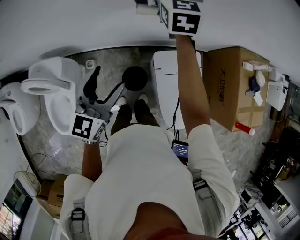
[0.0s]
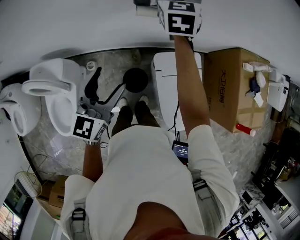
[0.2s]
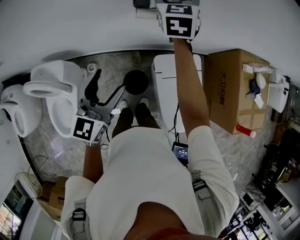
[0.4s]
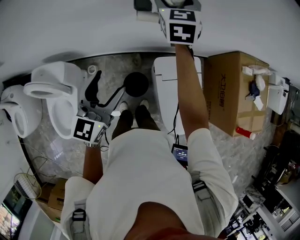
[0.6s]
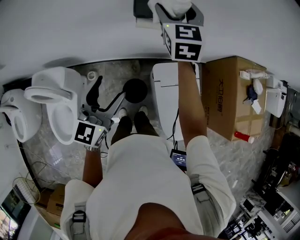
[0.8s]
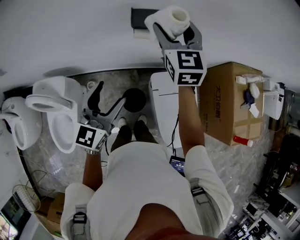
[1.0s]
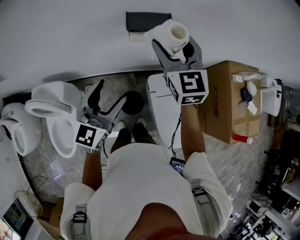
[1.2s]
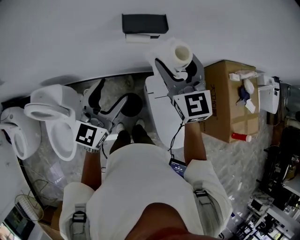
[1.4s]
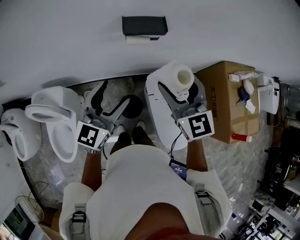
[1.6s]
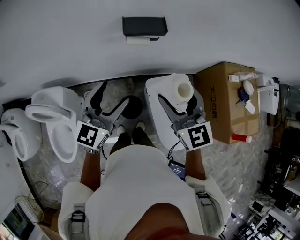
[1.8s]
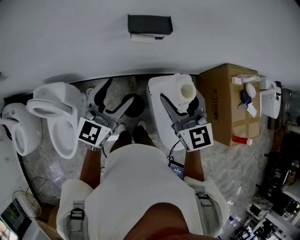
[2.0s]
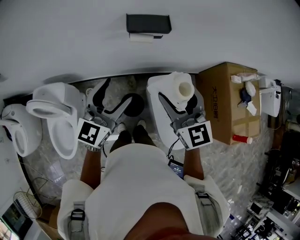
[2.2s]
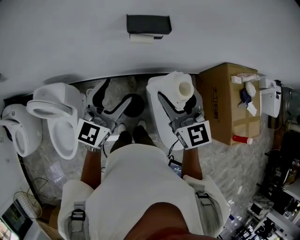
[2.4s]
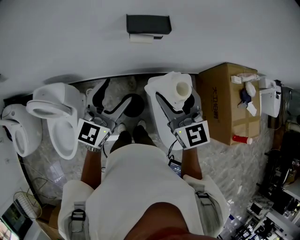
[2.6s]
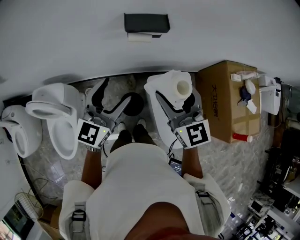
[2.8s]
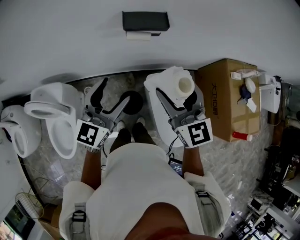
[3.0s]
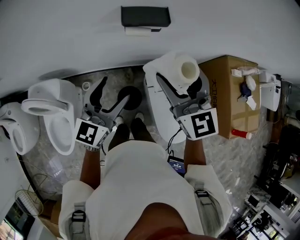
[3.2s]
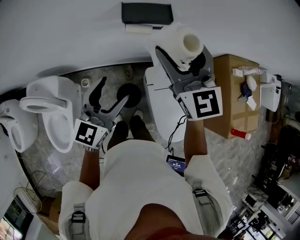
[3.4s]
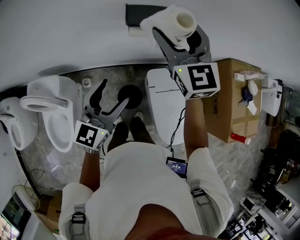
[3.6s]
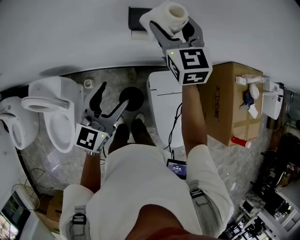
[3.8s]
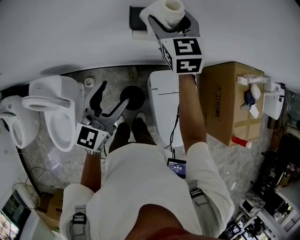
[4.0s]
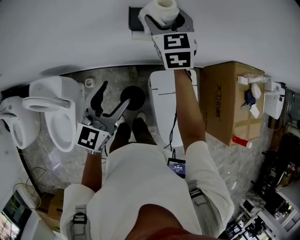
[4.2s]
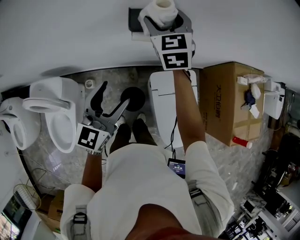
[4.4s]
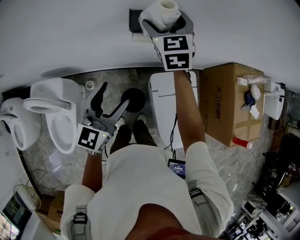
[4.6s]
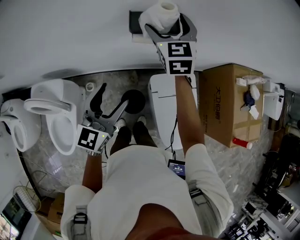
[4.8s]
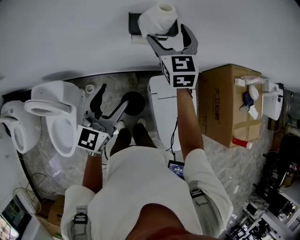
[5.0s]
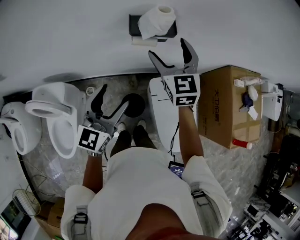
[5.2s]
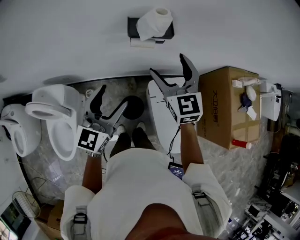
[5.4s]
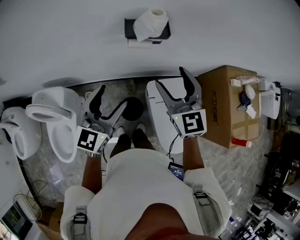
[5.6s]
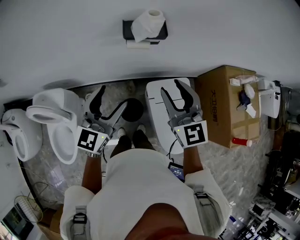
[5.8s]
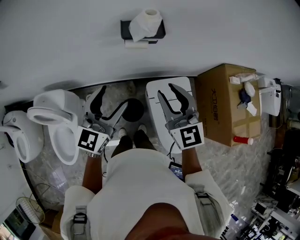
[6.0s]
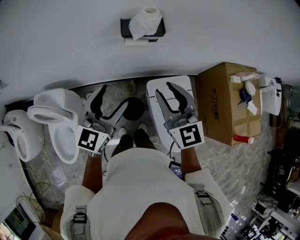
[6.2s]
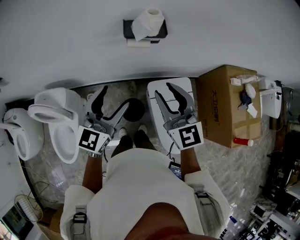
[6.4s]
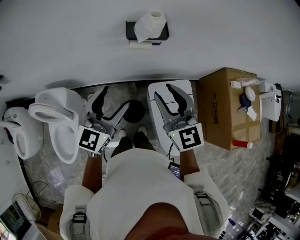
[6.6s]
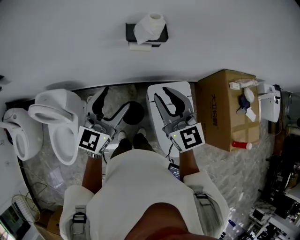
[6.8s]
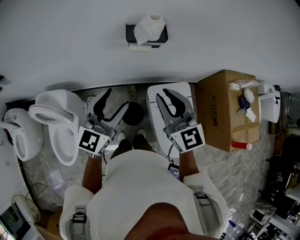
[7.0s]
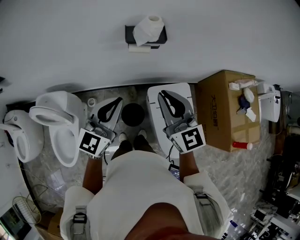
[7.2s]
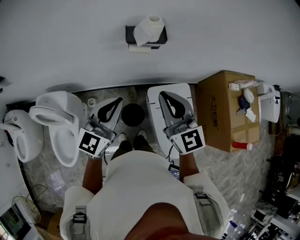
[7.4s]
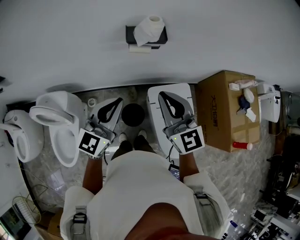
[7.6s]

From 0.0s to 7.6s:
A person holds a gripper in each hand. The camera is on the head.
From 0.0s to 1.6s: The right gripper moves backward, roughly 25 cm. The left gripper moves some 5 cm.
From 1.6s to 3.0s: The grippers make only small movements.
From 3.0s to 4.6s: The right gripper is displaced forward by about 25 cm.
From 4.6s to 6.0s: The left gripper ends up roughly 5 cm from where it was, while the right gripper goes roughly 25 cm backward, and closes.
From 6.0s to 7.6s: The left gripper closes its fingers.

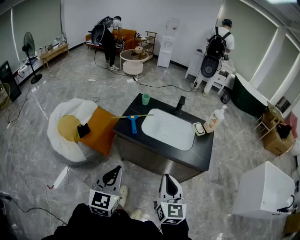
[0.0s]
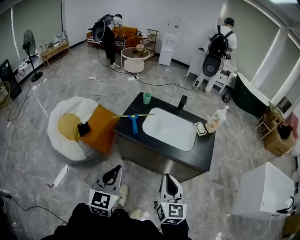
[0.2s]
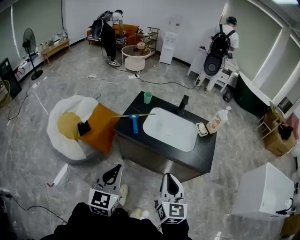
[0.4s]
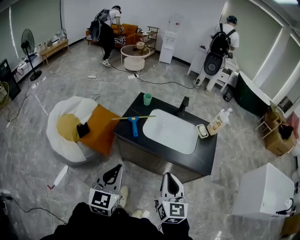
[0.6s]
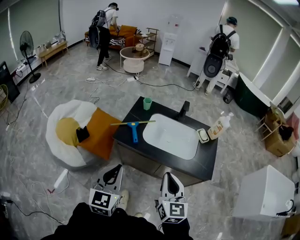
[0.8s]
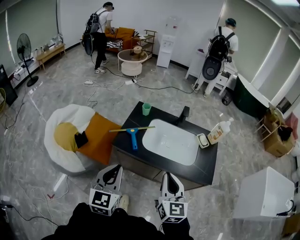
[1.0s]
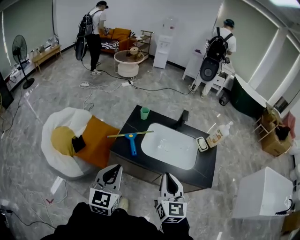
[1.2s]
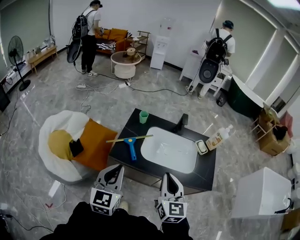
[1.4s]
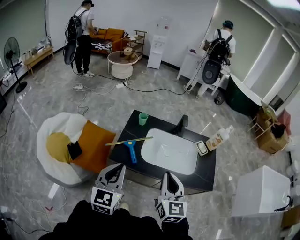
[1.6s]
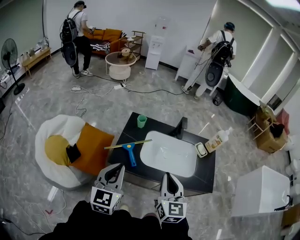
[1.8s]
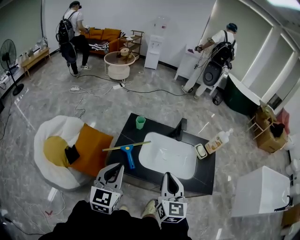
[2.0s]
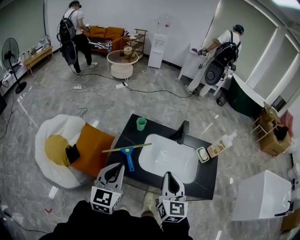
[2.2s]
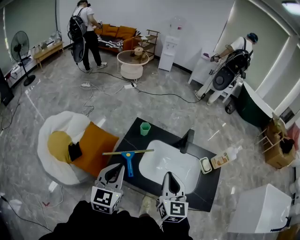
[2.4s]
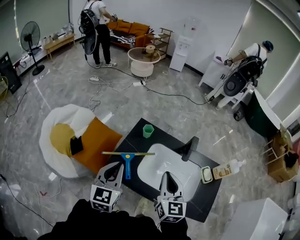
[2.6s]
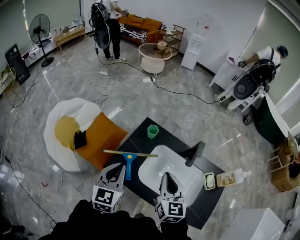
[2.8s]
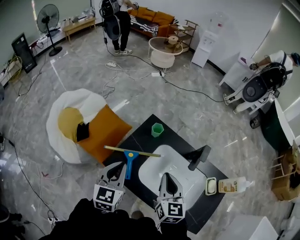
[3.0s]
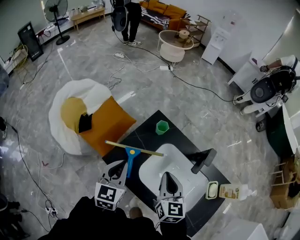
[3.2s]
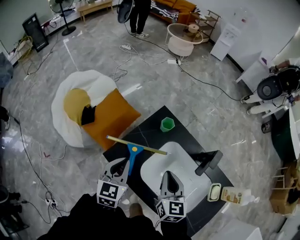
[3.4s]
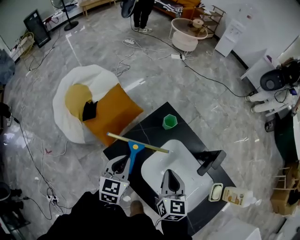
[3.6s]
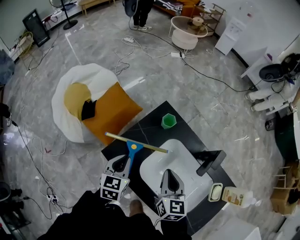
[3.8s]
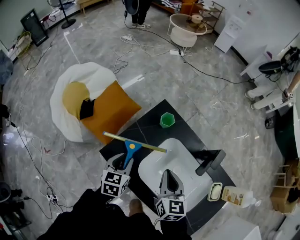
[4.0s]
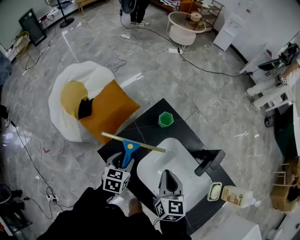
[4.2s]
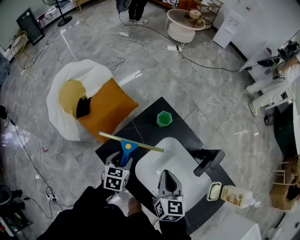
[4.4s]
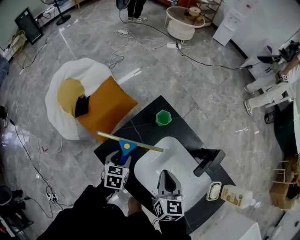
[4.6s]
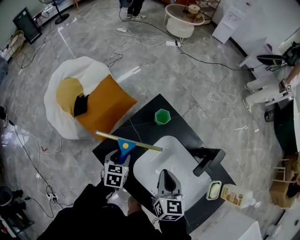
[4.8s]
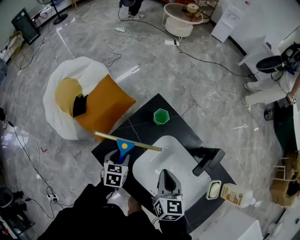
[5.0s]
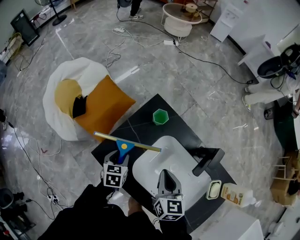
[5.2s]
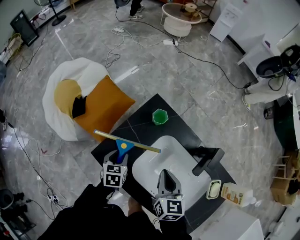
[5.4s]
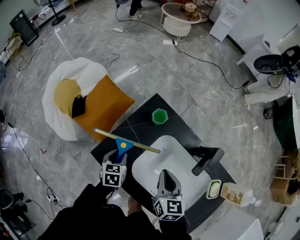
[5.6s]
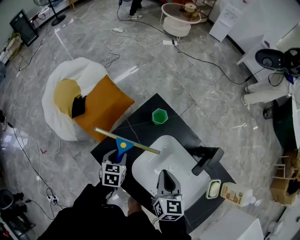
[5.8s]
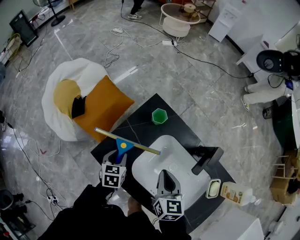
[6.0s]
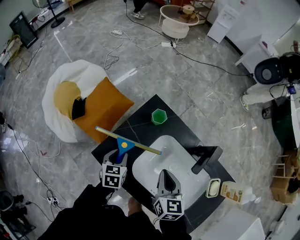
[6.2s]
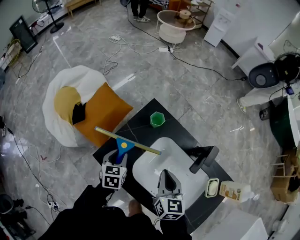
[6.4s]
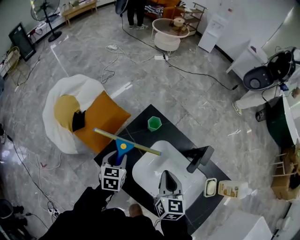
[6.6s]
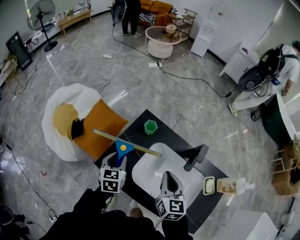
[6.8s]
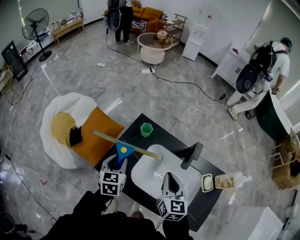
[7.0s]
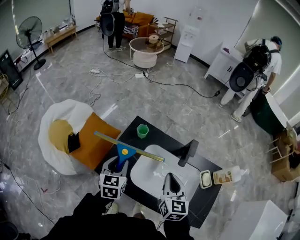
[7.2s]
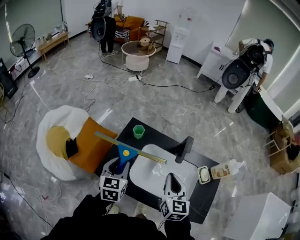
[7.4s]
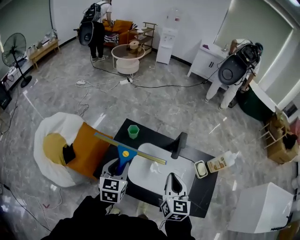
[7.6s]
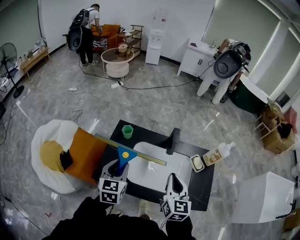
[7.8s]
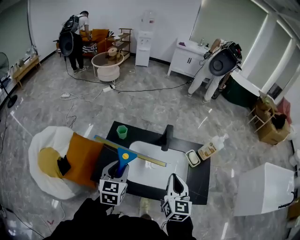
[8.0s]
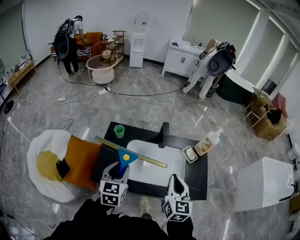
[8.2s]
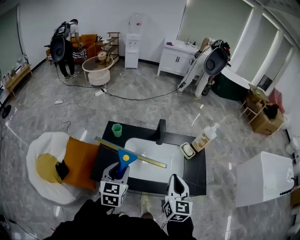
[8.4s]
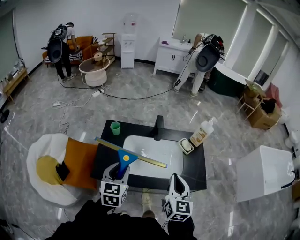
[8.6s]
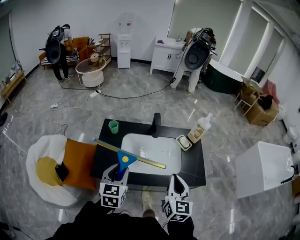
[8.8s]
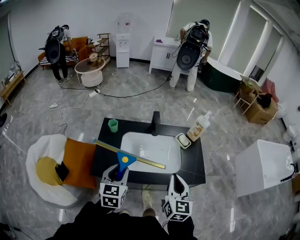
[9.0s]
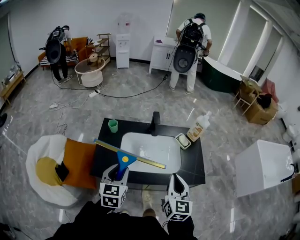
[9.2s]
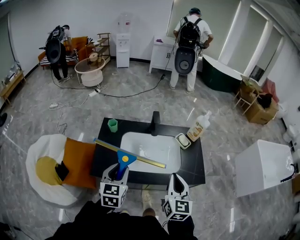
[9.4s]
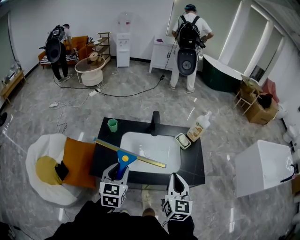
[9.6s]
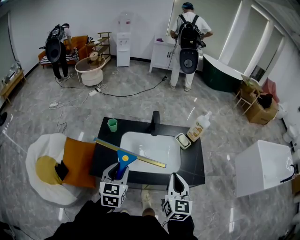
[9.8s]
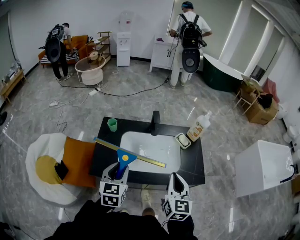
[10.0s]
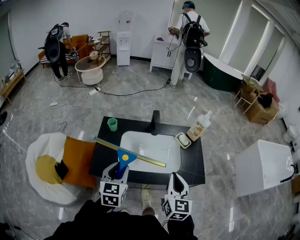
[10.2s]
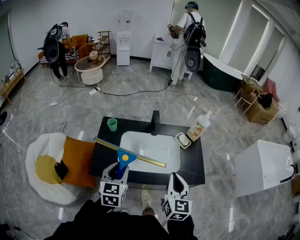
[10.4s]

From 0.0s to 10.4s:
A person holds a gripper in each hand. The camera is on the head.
From 0.0s to 1.4s: Both grippers move forward, about 20 cm.
From 1.4s to 3.0s: The left gripper moves forward and downward, roughly 25 cm, and changes its angle by some 20 degrees; the right gripper travels forward by about 25 cm, and changes its angle by some 20 degrees.
From 3.0s to 4.4s: The left gripper travels downward by approximately 20 cm, turns by roughly 30 degrees, and opens its fingers; the right gripper goes some 10 cm downward and forward.
From 4.4s to 6.0s: The grippers stay close to where they were, moving slightly.
From 6.0s to 7.4s: The right gripper is displaced upward, backward and to the right by about 15 cm, and changes its angle by roughly 20 degrees; the left gripper is displaced upward by some 25 cm, and swivels approximately 30 degrees.
From 7.4s to 9.0s: Both grippers move backward and to the right, approximately 20 cm. The left gripper rotates roughly 20 degrees. Meanwhile the right gripper turns by some 30 degrees.
From 9.0s to 10.4s: The grippers stay close to where they were, moving slightly.

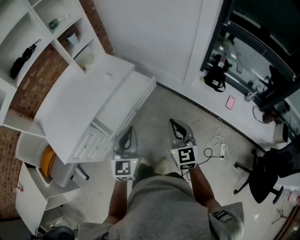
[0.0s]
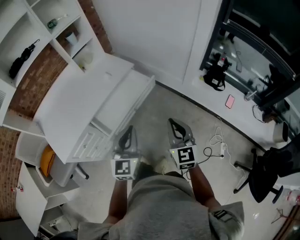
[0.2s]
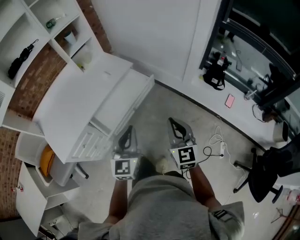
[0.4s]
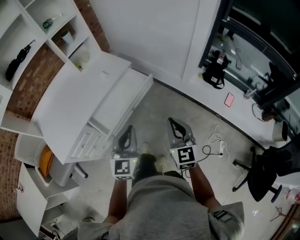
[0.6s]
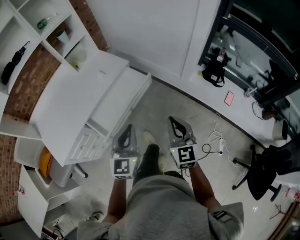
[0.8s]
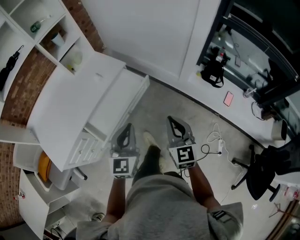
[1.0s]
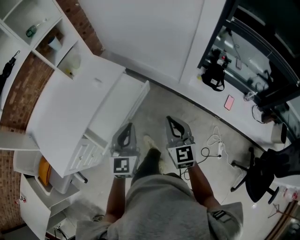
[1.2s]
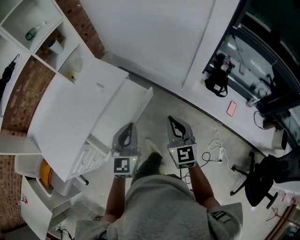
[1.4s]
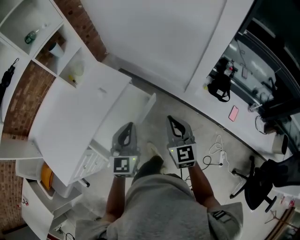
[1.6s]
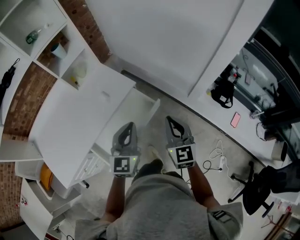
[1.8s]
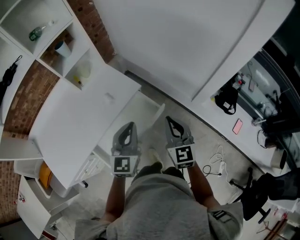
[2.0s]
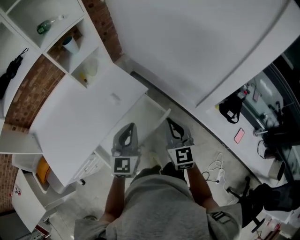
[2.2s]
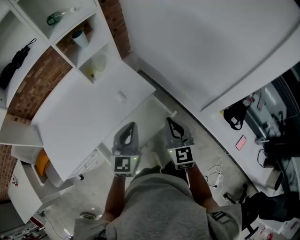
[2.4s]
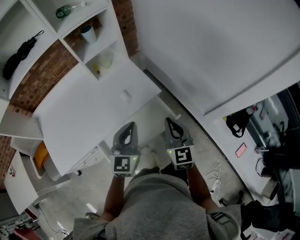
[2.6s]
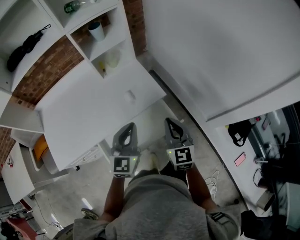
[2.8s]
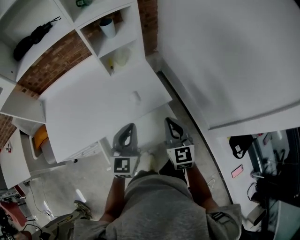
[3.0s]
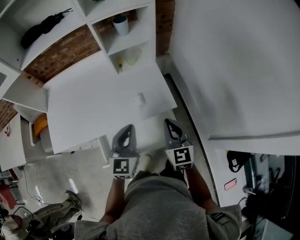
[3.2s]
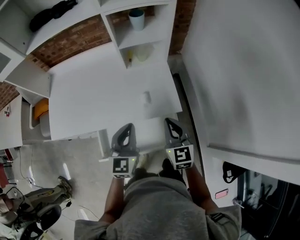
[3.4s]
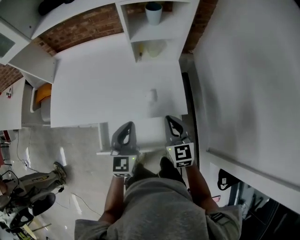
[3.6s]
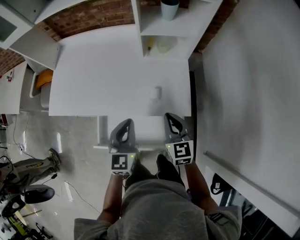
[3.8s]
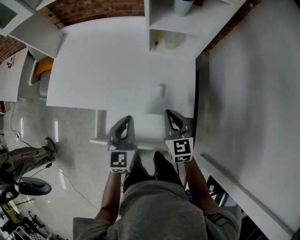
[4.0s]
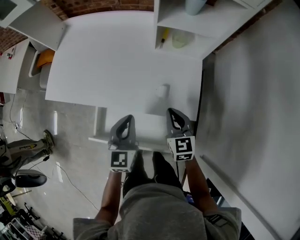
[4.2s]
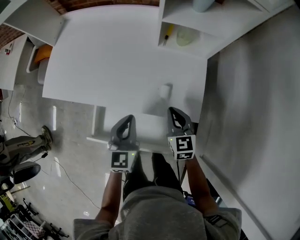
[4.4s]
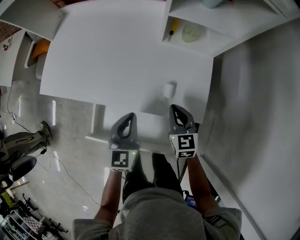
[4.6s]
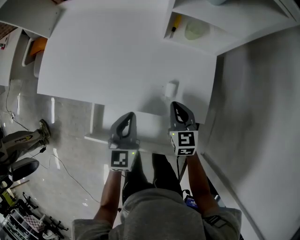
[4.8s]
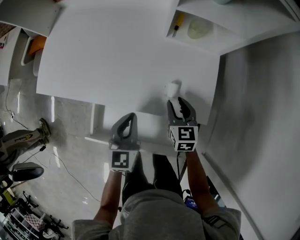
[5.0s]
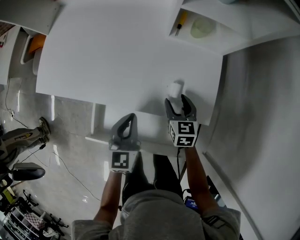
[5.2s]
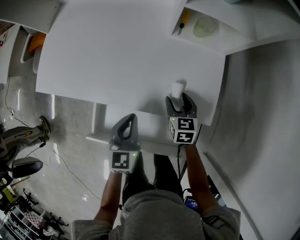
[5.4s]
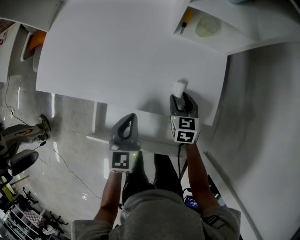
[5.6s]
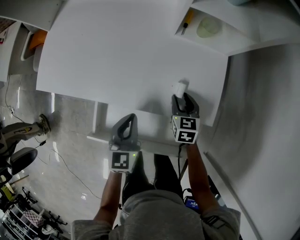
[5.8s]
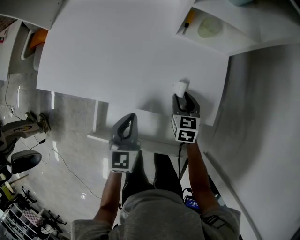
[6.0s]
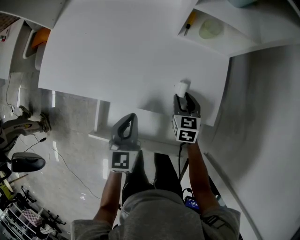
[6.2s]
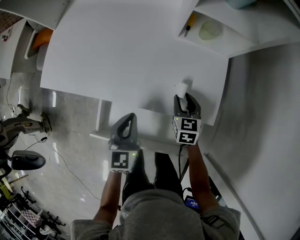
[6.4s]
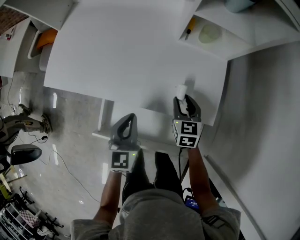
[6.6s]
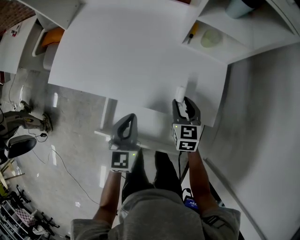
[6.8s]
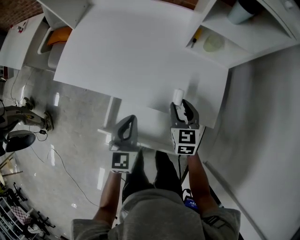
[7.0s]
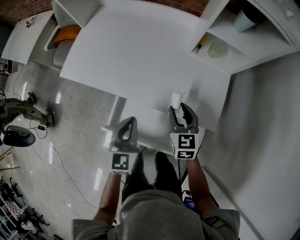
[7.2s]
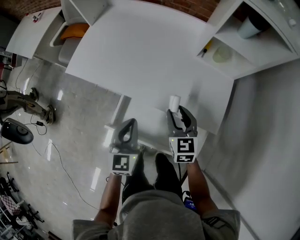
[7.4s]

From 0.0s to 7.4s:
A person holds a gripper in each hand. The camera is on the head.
From 0.0s to 1.4s: Both grippers move forward, some 20 cm.
From 1.4s to 3.0s: The right gripper ends up roughly 30 cm from where it was, and rotates approximately 30 degrees. Meanwhile the left gripper shifts by some 25 cm, and turns by about 30 degrees.
From 3.0s to 4.4s: The left gripper shifts roughly 10 cm downward, and changes its angle by roughly 40 degrees; the right gripper changes place by approximately 25 cm, and swivels some 40 degrees.
From 4.4s to 6.0s: The right gripper is displaced downward and forward by approximately 15 cm, and opens up. The left gripper shifts approximately 10 cm downward.
From 6.0s to 7.4s: The left gripper moves upward, to the left and backward, approximately 15 cm. The right gripper goes about 20 cm upward, to the left and backward, and changes its angle by about 20 degrees.
